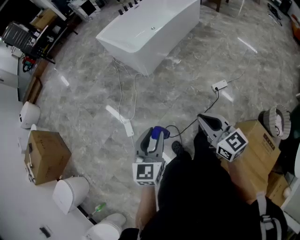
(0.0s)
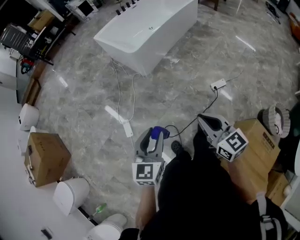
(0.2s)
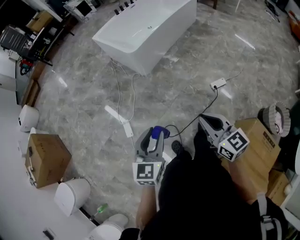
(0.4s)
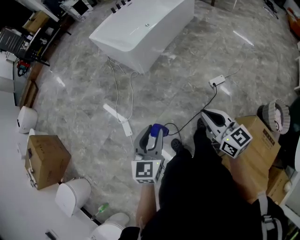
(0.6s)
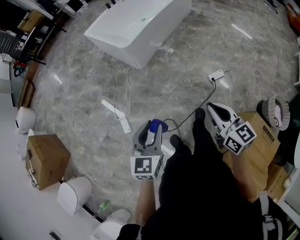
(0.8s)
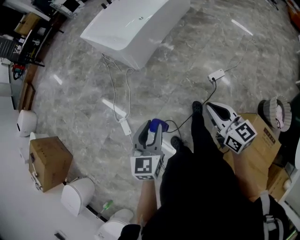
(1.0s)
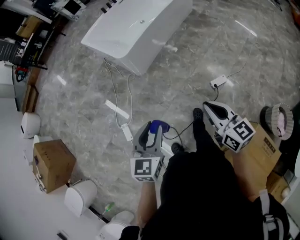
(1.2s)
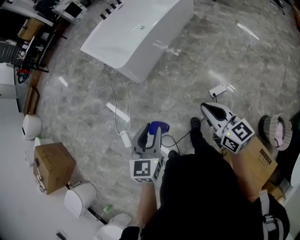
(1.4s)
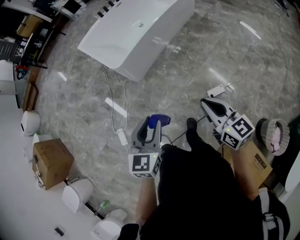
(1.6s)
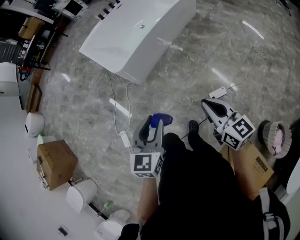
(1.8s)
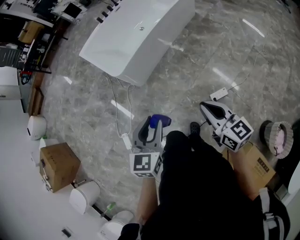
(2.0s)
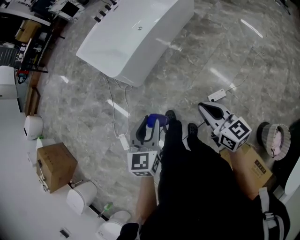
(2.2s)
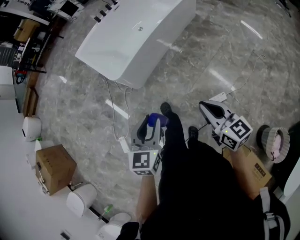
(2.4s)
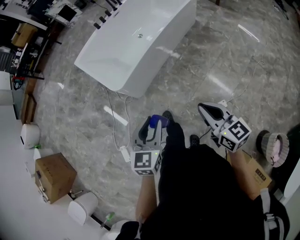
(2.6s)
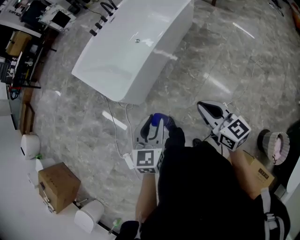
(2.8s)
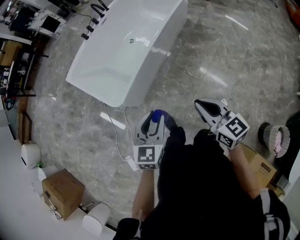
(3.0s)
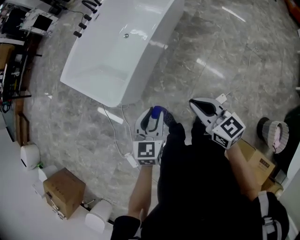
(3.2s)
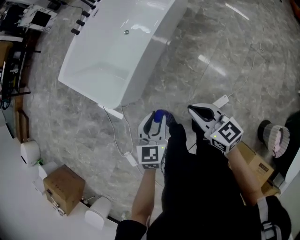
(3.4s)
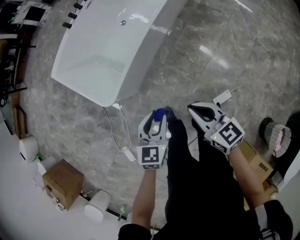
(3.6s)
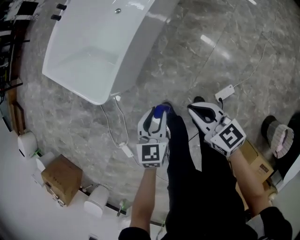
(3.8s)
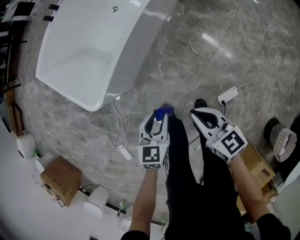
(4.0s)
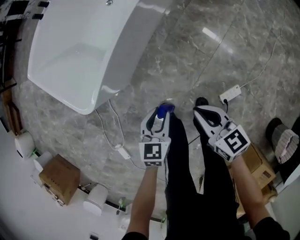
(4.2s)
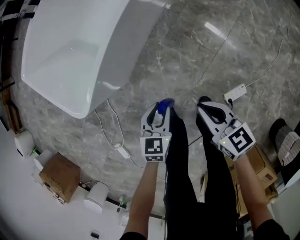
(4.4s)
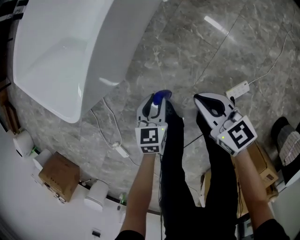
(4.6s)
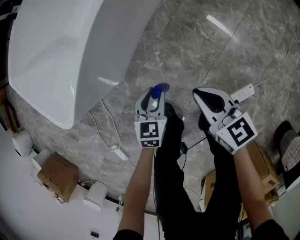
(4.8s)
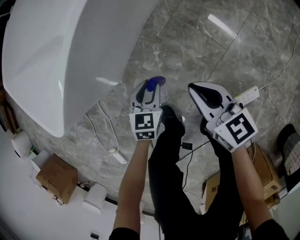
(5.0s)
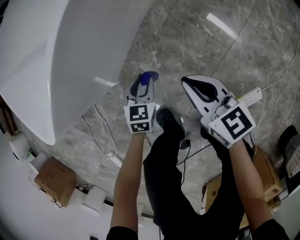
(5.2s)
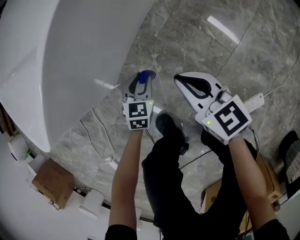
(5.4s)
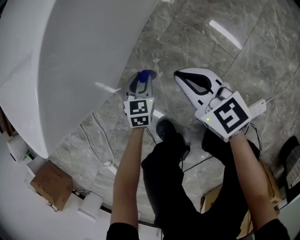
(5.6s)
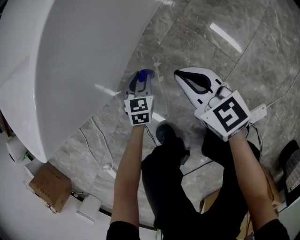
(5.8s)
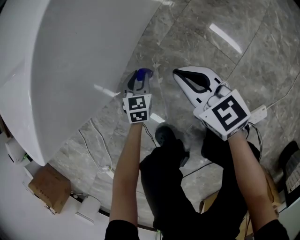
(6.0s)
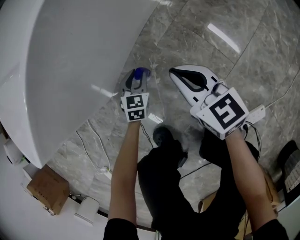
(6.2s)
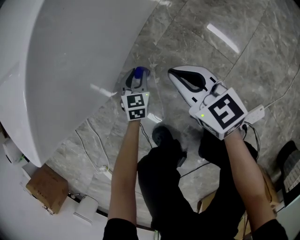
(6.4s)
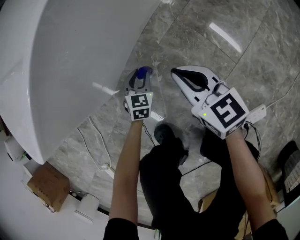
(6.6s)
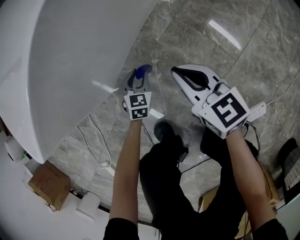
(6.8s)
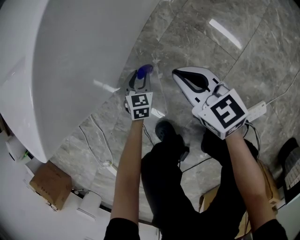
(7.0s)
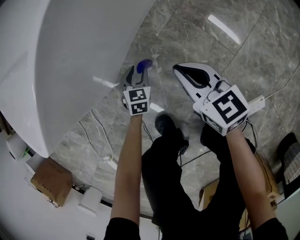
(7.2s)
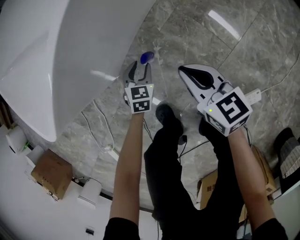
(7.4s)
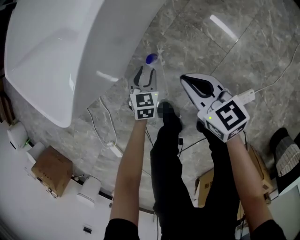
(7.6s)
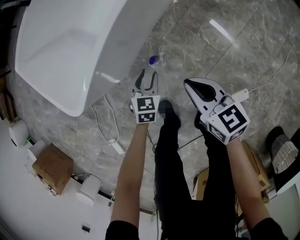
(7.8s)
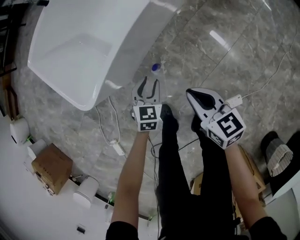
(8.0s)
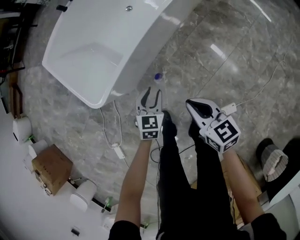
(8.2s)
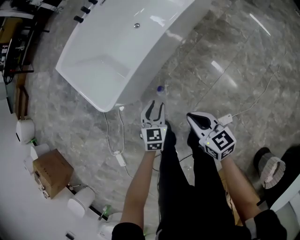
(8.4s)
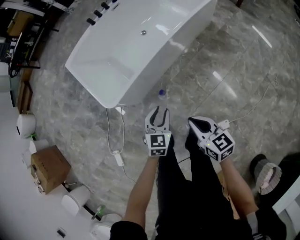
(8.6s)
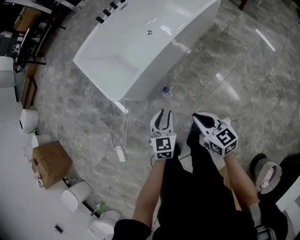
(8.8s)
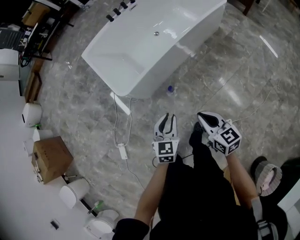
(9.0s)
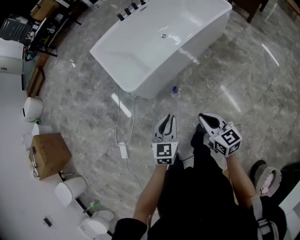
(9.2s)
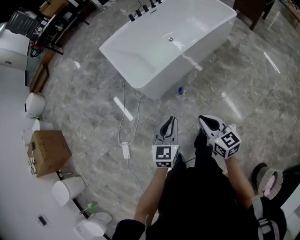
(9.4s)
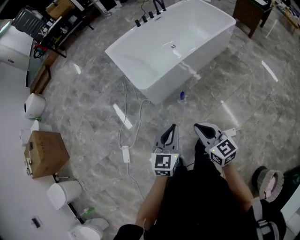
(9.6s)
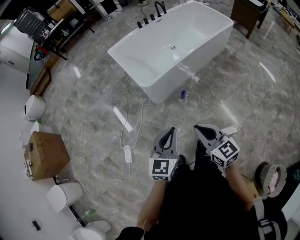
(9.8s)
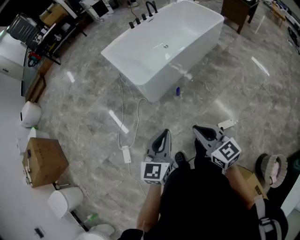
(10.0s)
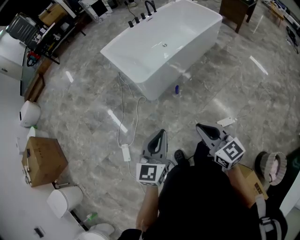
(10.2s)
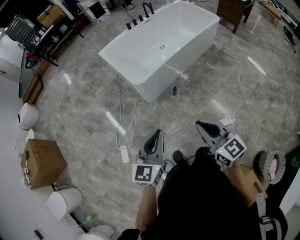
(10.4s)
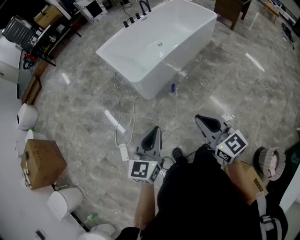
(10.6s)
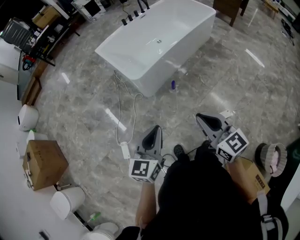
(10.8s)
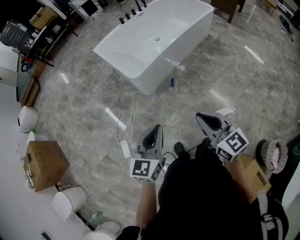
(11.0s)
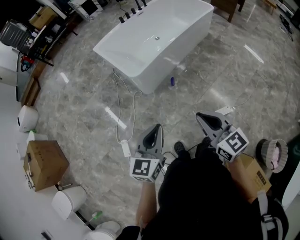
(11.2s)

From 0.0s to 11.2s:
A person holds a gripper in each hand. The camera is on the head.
From 0.0s to 1.6s: The two grippers go approximately 40 cm forward and to the right.
From 1.6s to 3.2s: Both grippers travel together forward, some 35 cm.
From 3.2s to 4.8s: Both grippers travel together downward, roughly 50 cm.
From 4.8s to 6.4s: The grippers both shift downward and forward by about 25 cm.
From 6.4s to 8.0s: The grippers both shift upward by about 35 cm.
From 8.0s to 9.6s: The left gripper is displaced upward and backward by some 60 cm, turns by approximately 30 degrees, and closes its fingers, while the right gripper moves upward, backward and to the left, approximately 50 cm, and swivels about 20 degrees.
From 9.6s to 11.2s: The left gripper goes some 20 cm backward, to the left and upward, while the right gripper is displaced backward and upward by about 15 cm.

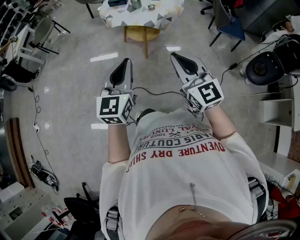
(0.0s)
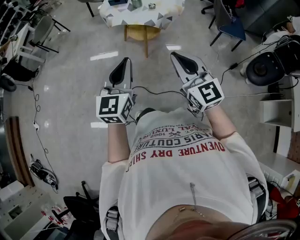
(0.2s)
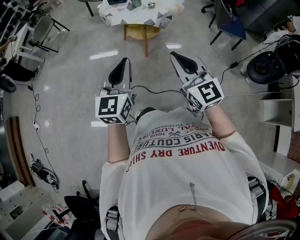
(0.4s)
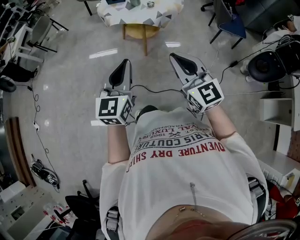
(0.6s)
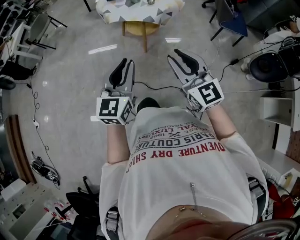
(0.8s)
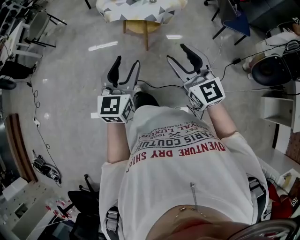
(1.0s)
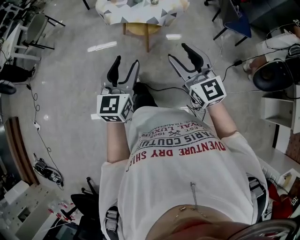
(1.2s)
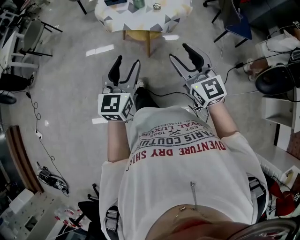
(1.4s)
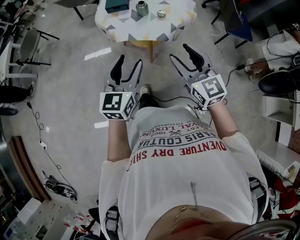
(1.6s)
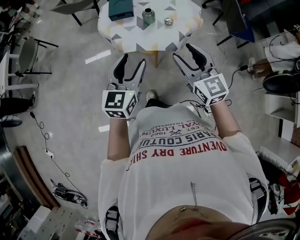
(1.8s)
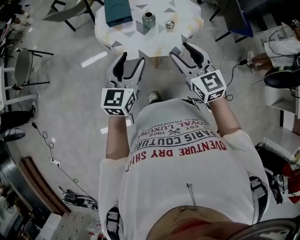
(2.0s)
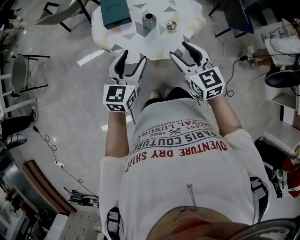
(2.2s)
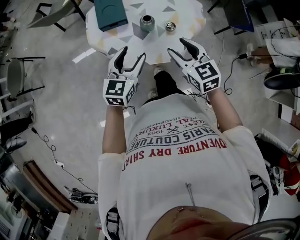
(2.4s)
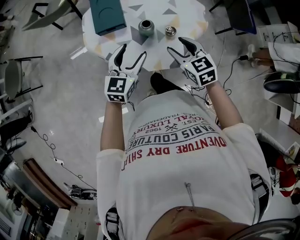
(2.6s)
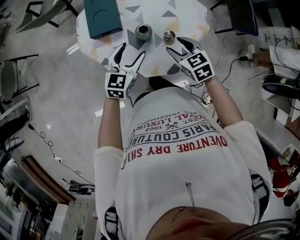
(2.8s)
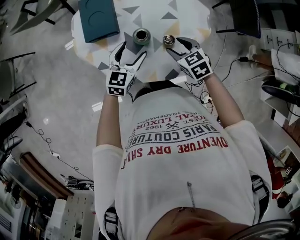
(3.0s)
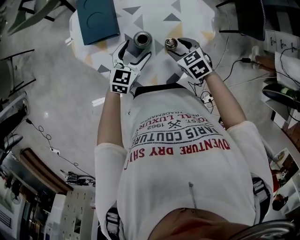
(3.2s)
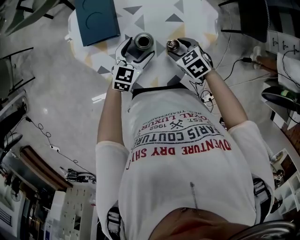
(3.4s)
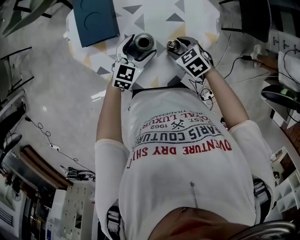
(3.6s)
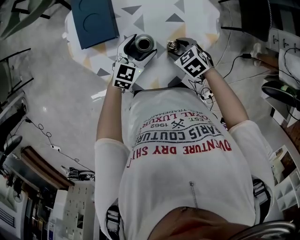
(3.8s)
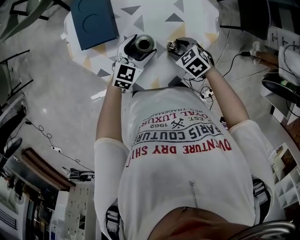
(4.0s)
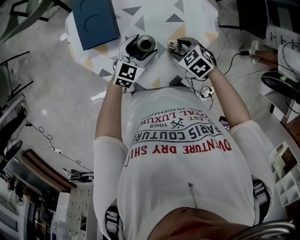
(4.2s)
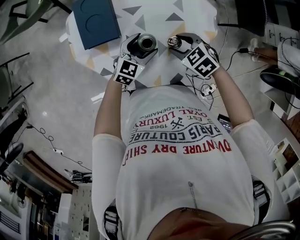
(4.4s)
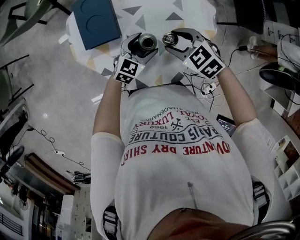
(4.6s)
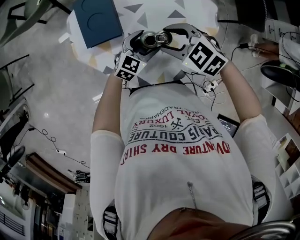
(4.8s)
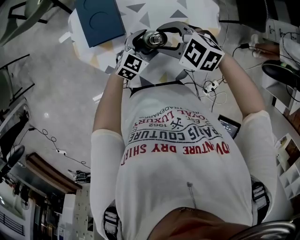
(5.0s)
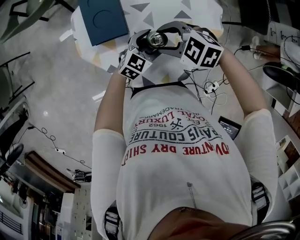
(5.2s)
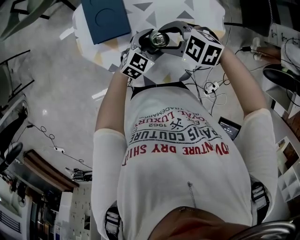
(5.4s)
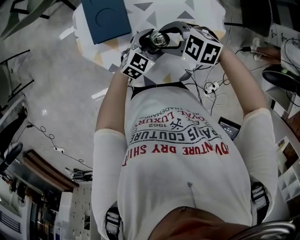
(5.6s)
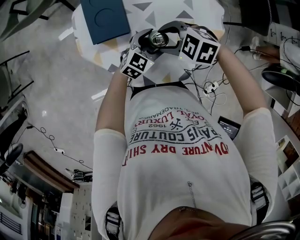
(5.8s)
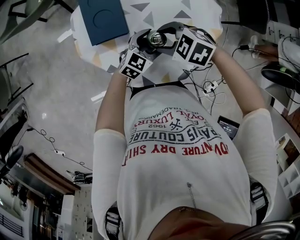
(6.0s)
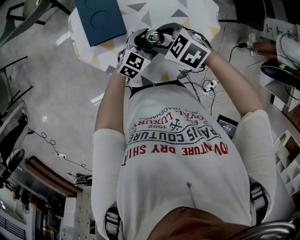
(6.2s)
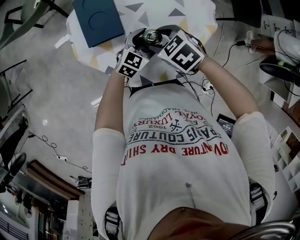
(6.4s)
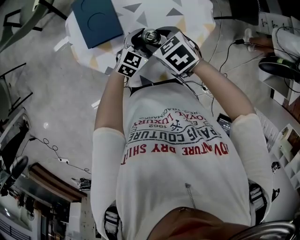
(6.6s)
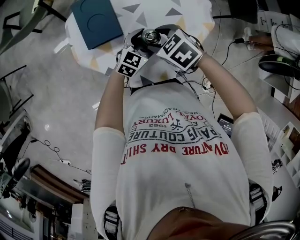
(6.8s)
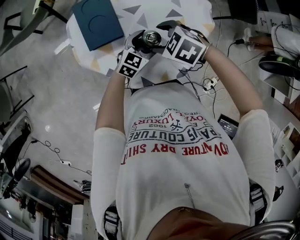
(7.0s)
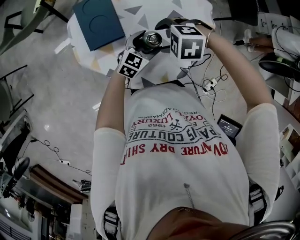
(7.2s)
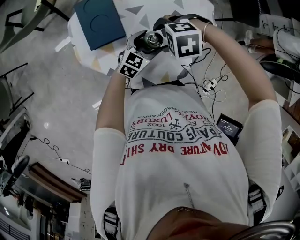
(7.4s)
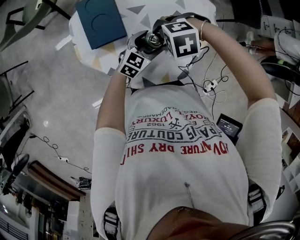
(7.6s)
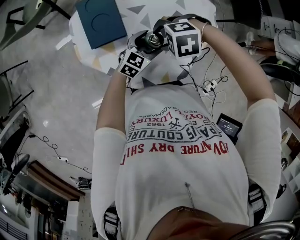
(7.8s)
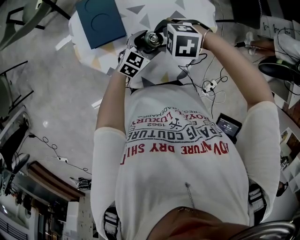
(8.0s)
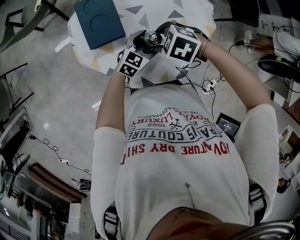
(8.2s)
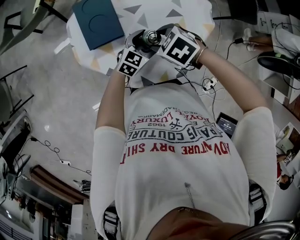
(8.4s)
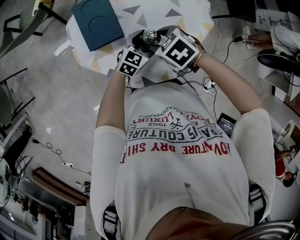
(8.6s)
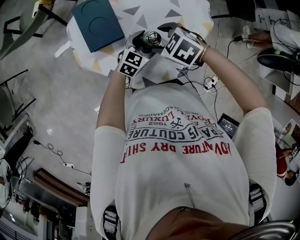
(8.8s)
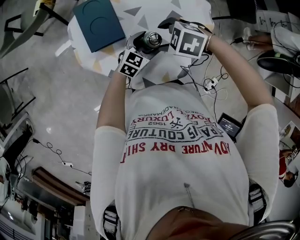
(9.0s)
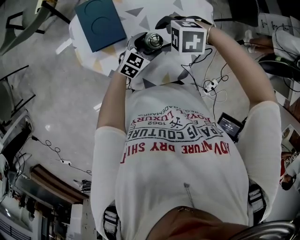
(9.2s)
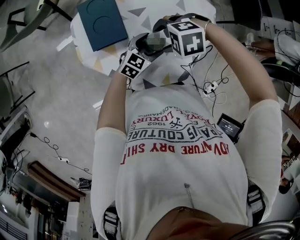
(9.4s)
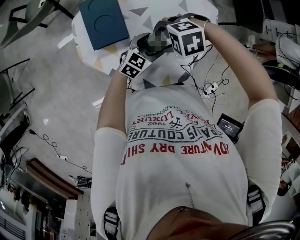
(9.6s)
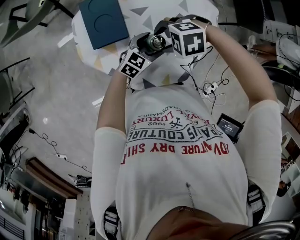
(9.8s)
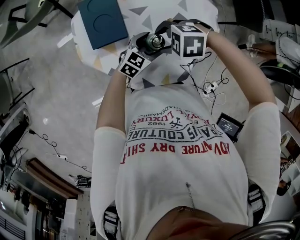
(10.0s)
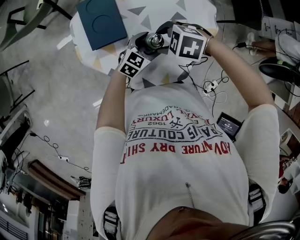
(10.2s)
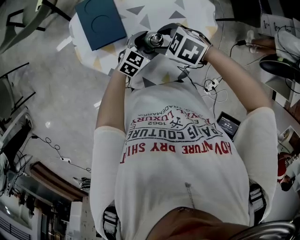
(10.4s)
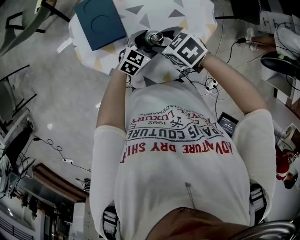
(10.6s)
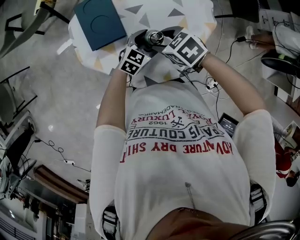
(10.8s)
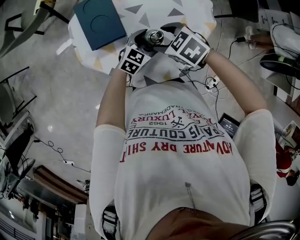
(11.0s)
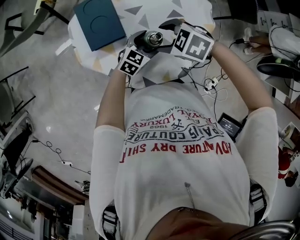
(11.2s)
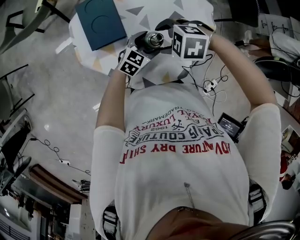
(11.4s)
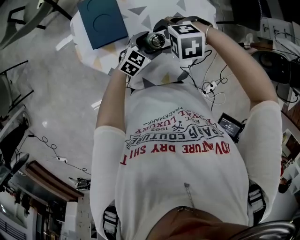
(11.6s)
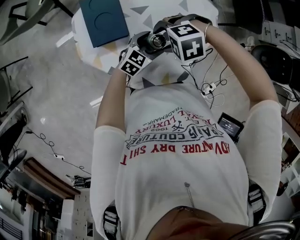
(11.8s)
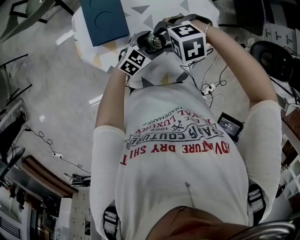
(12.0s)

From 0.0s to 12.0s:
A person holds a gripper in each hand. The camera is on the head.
From 0.0s to 1.6s: The two grippers go approximately 25 cm forward. The right gripper opens up, while the left gripper opens its fingers.
From 1.6s to 3.0s: The two grippers go roughly 40 cm forward and downward. The left gripper changes its angle by approximately 20 degrees. Meanwhile the right gripper tilts its fingers roughly 40 degrees downward.
From 3.0s to 4.4s: The right gripper reaches some 10 cm downward, then returns, while the left gripper heads downward, covering approximately 5 cm.
From 4.4s to 6.0s: The right gripper moves approximately 10 cm, and swivels approximately 20 degrees.
From 6.0s to 7.6s: The right gripper changes its angle by some 30 degrees.
From 7.6s to 9.0s: The right gripper turns by approximately 30 degrees.
From 10.4s to 12.0s: The right gripper rolls counterclockwise, seen from behind, by some 40 degrees.

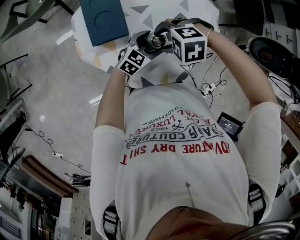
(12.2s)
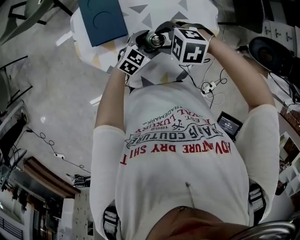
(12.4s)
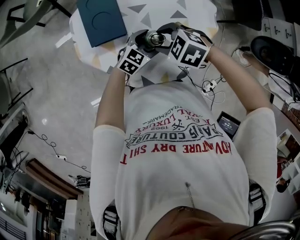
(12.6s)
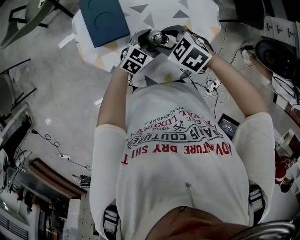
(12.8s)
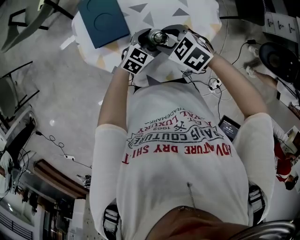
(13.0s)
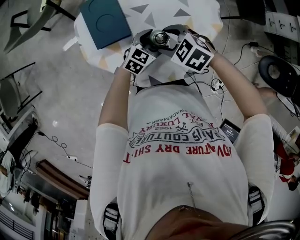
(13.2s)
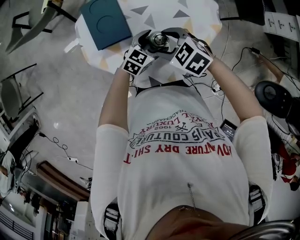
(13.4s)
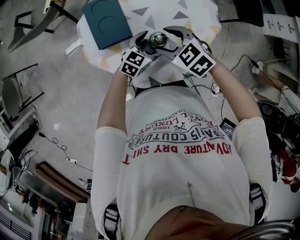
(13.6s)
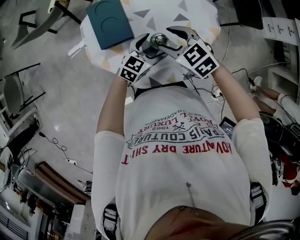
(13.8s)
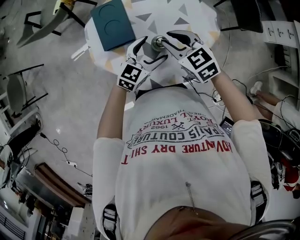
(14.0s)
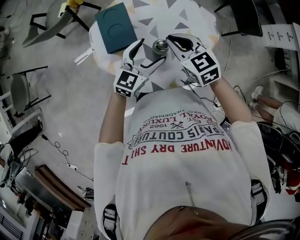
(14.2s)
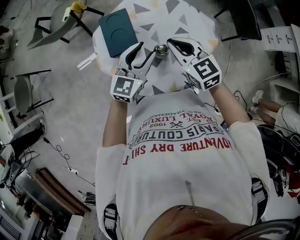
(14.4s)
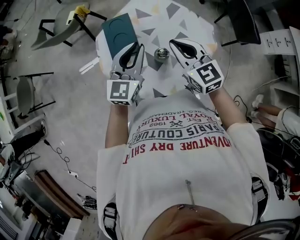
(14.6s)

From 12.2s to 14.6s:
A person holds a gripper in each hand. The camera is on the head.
From 12.2s to 13.4s: The right gripper swivels approximately 50 degrees.
From 13.4s to 14.6s: The left gripper heads upward, covering some 25 cm, swivels about 40 degrees, and closes up. Meanwhile the right gripper shifts some 15 cm upward, tilts its fingers some 40 degrees upward, and closes up.
